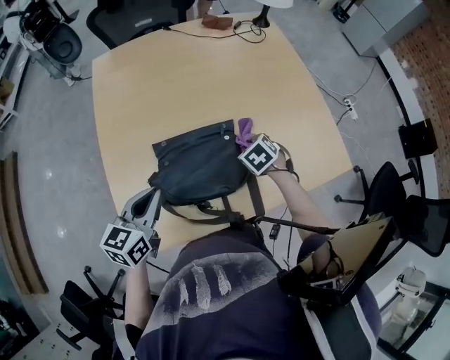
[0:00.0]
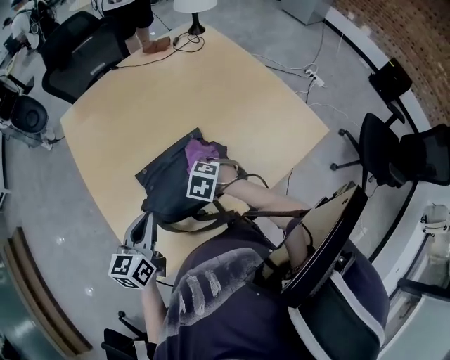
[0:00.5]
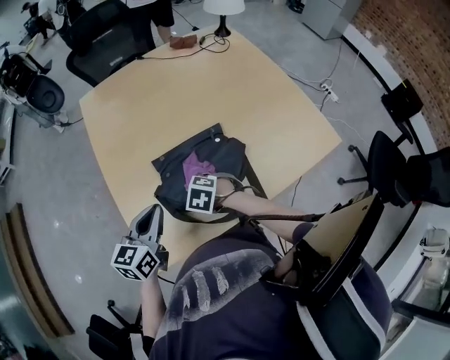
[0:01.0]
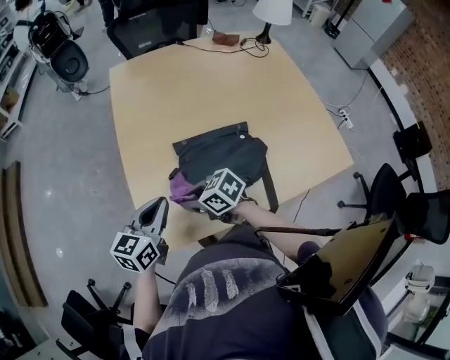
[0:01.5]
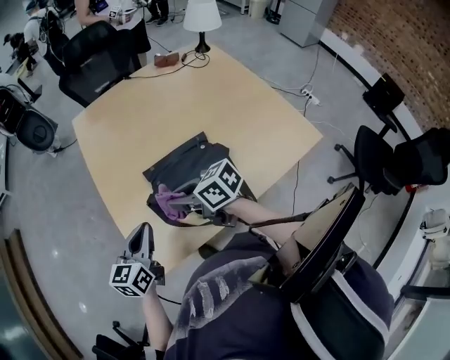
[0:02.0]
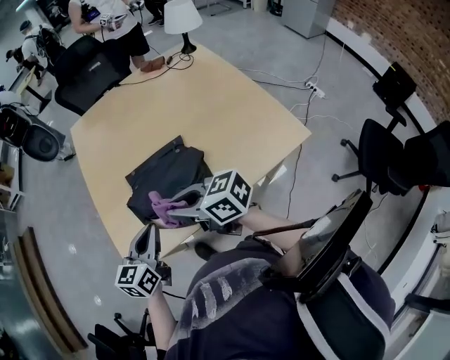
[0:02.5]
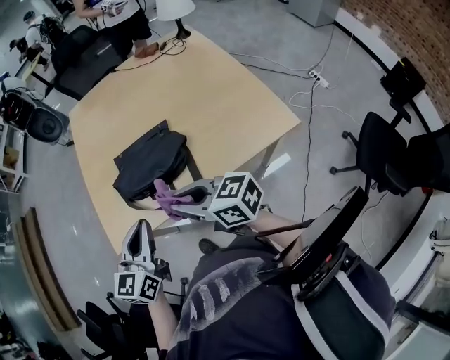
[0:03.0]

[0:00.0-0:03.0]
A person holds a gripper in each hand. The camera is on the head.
0:00.0 to 0:01.5: The right gripper moves roughly 35 cm, and tips its fingers upward by roughly 30 degrees, while the left gripper shifts by about 10 cm.
0:01.5 to 0:03.0: The left gripper is displaced backward, to the right and upward by approximately 25 cm; the right gripper heads to the right, backward and upward, covering roughly 35 cm, and rotates some 30 degrees.

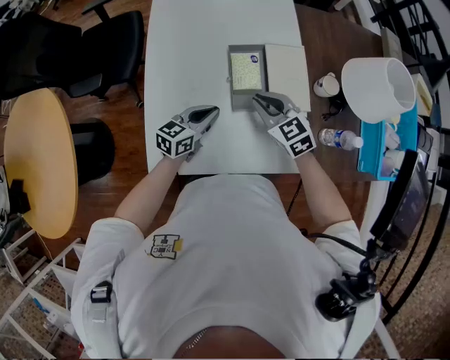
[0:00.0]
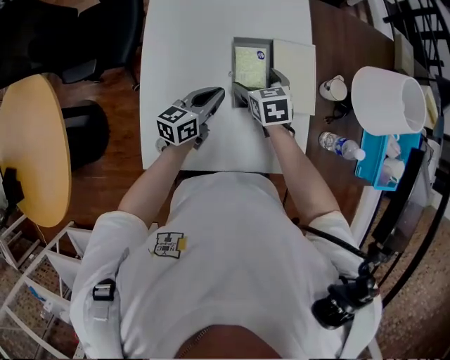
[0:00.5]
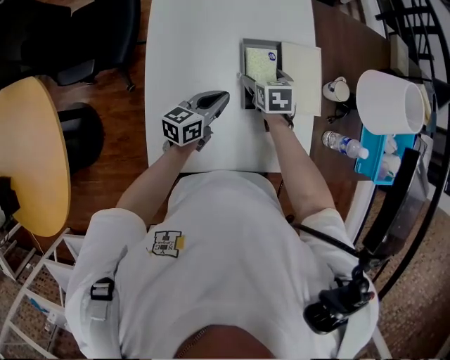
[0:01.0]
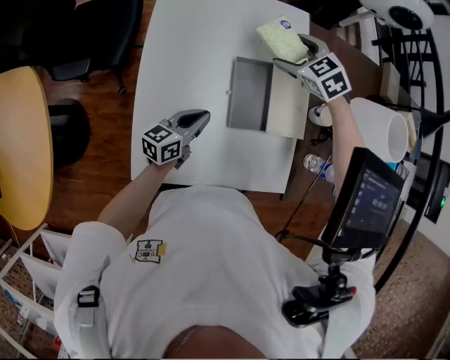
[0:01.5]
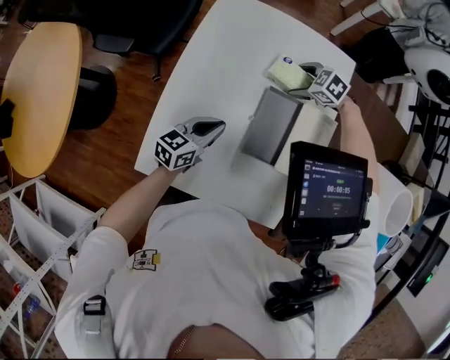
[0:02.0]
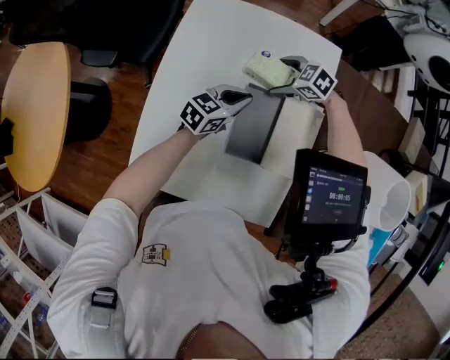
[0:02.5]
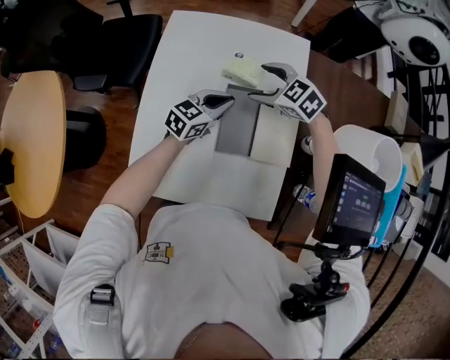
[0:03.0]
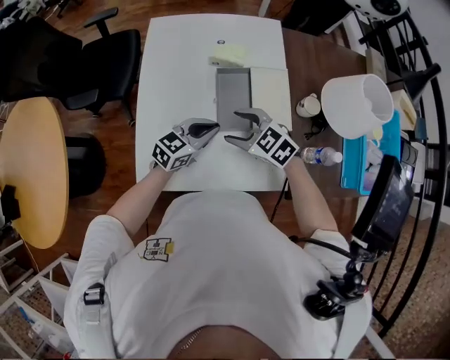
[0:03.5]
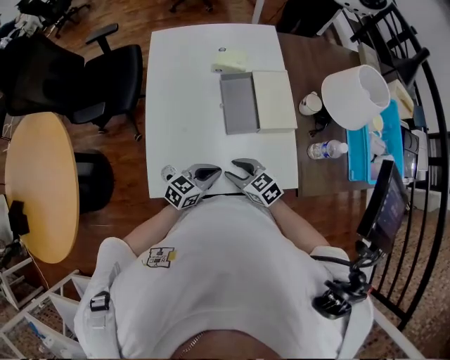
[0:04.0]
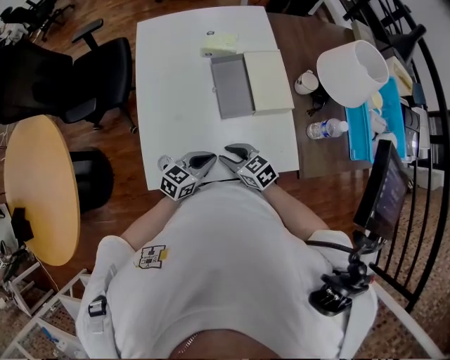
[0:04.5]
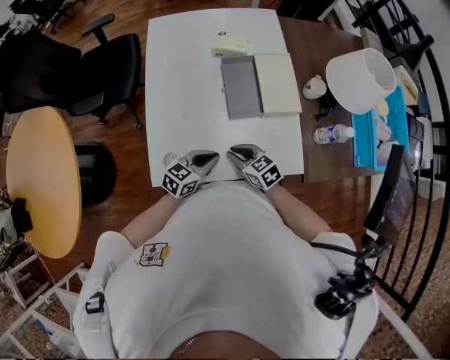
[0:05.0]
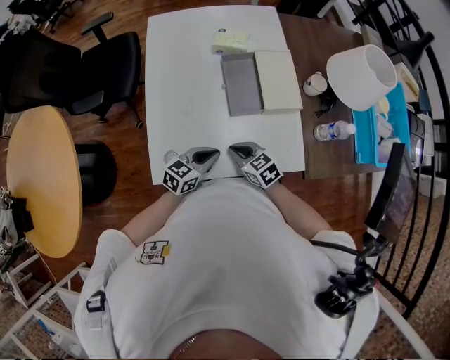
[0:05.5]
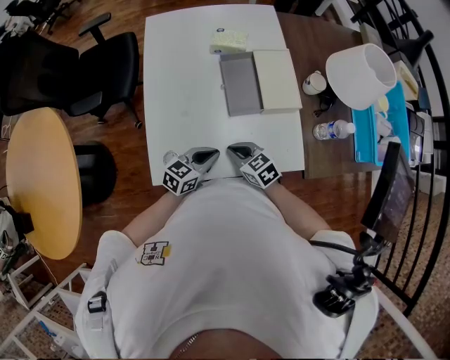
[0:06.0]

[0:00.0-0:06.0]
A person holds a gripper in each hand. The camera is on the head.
0:00.0 to 0:02.0: The left gripper shifts by roughly 10 cm, while the right gripper shifts by about 30 cm, tips its fingers downward by about 40 degrees, and opens.
0:02.0 to 0:04.0: The right gripper is displaced backward by some 35 cm, twists some 50 degrees clockwise, seen from behind, and closes. Meanwhile the left gripper shifts roughly 15 cm backward, and rotates some 30 degrees.
0:04.0 to 0:06.0: The grippers move only a little.

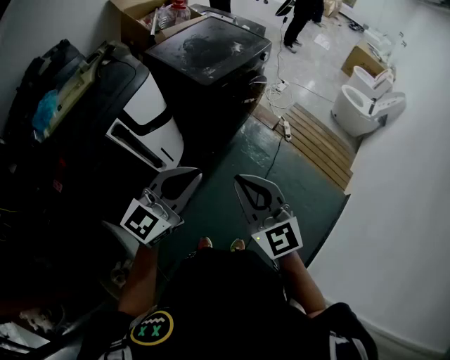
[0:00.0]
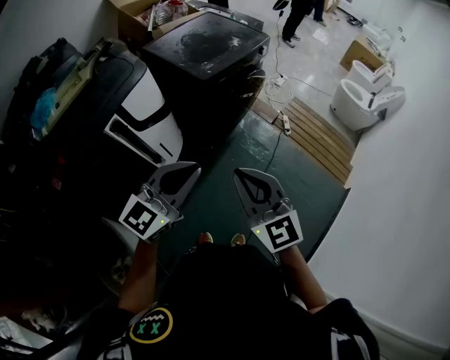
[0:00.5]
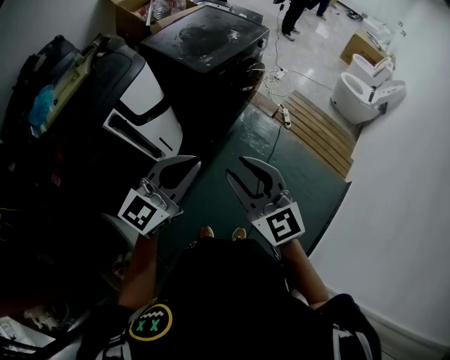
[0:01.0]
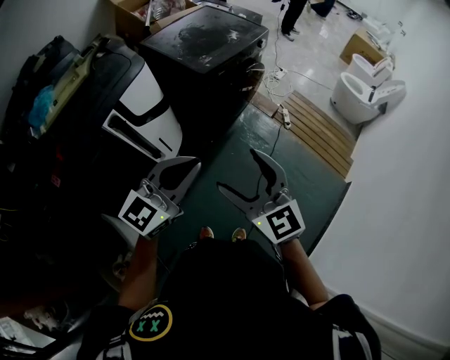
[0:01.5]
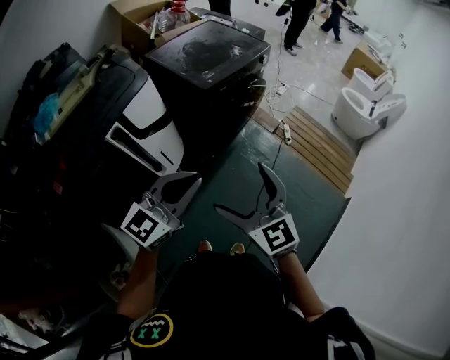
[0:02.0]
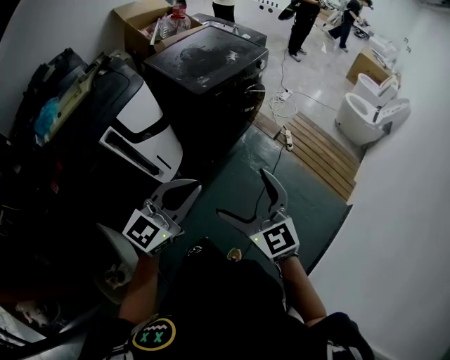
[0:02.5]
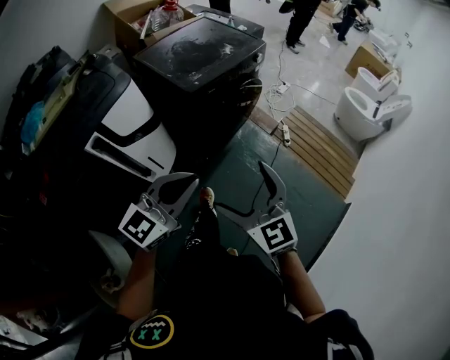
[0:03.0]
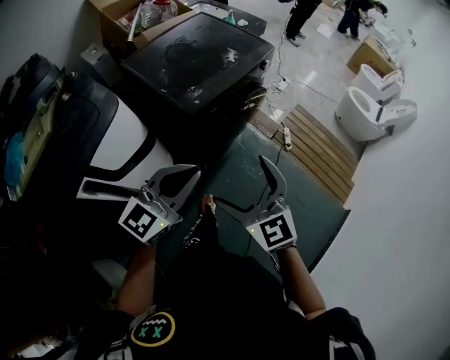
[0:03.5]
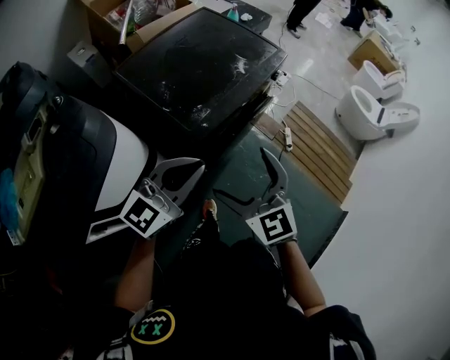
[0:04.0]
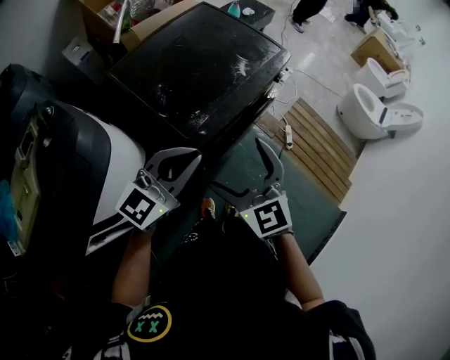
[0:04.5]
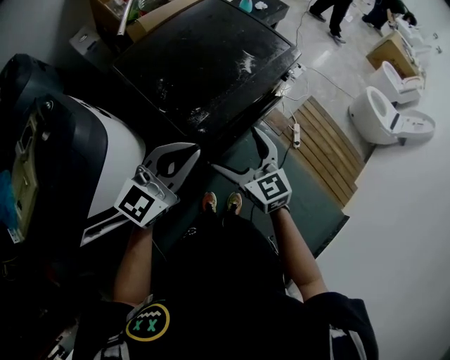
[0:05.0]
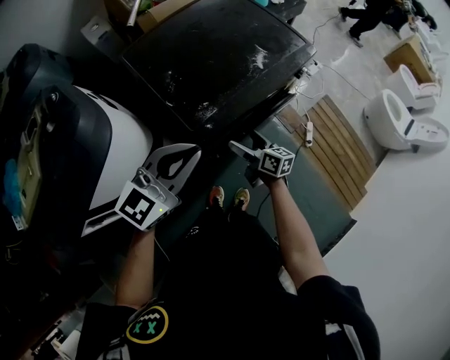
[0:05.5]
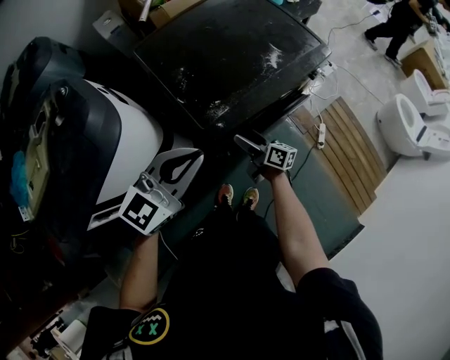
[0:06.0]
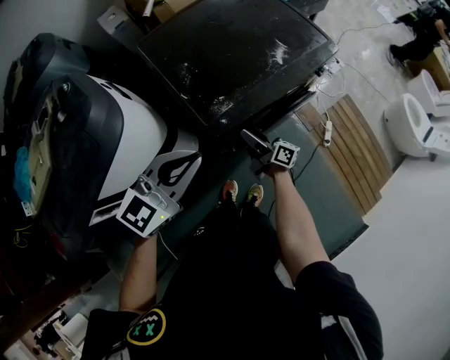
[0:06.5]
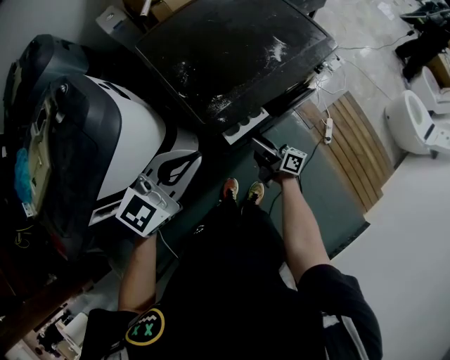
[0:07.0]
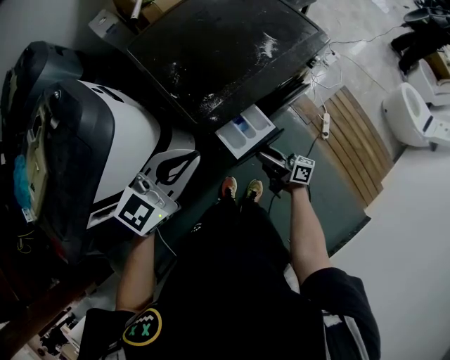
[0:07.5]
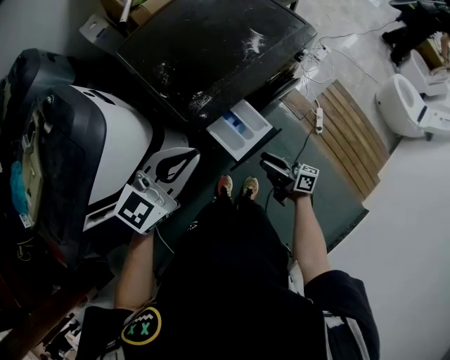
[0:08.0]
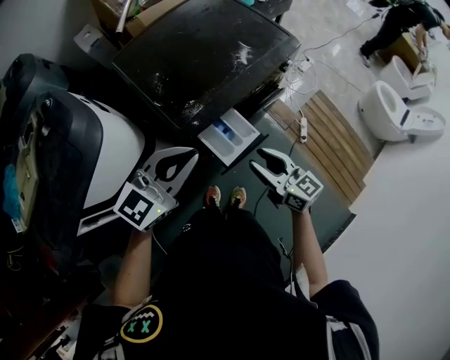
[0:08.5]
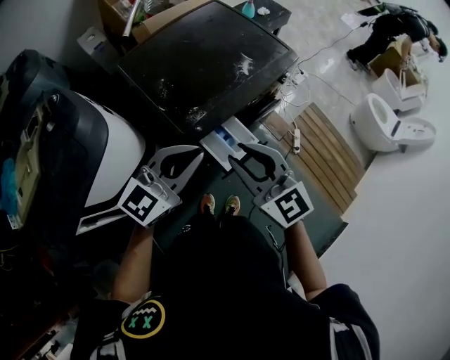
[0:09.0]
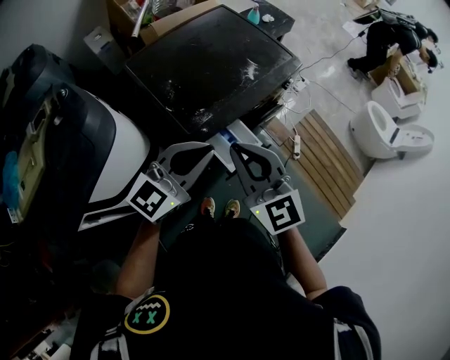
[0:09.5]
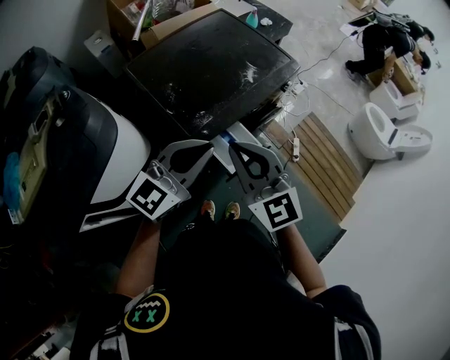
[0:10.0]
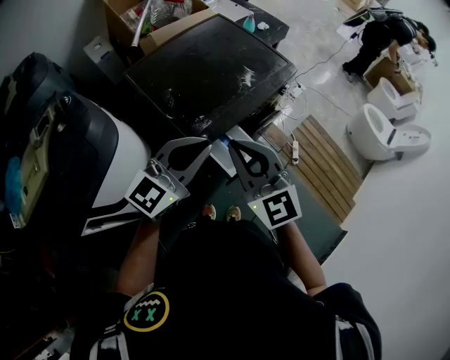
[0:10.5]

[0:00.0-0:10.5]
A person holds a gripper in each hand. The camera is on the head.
0:00.0 to 0:02.0: The right gripper opens its fingers.
0:02.0 to 0:04.0: The two grippers travel together, forward, approximately 40 cm.
0:04.0 to 0:06.5: The right gripper heads downward and forward, covering roughly 30 cm, and rotates around the line of its fingers by roughly 80 degrees, clockwise from behind. The left gripper shifts some 5 cm forward.
0:06.5 to 0:08.5: The left gripper changes place by some 5 cm; the right gripper heads upward, backward and to the right, covering approximately 20 cm, twists some 40 degrees counterclockwise, seen from behind, and closes.
0:08.5 to 0:10.5: The right gripper goes approximately 25 cm upward and to the left, and rotates roughly 40 degrees, while the left gripper heads upward, covering roughly 5 cm.

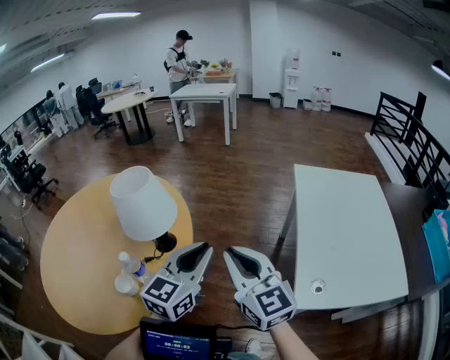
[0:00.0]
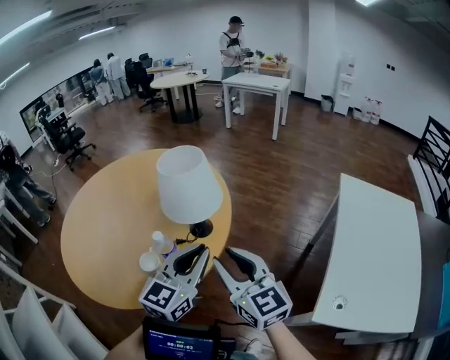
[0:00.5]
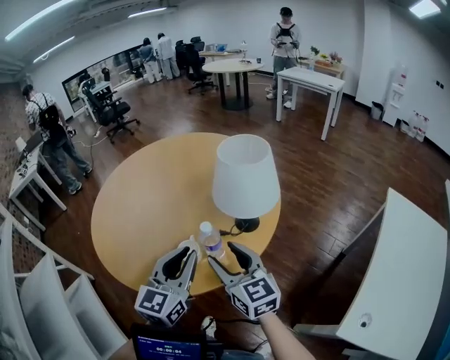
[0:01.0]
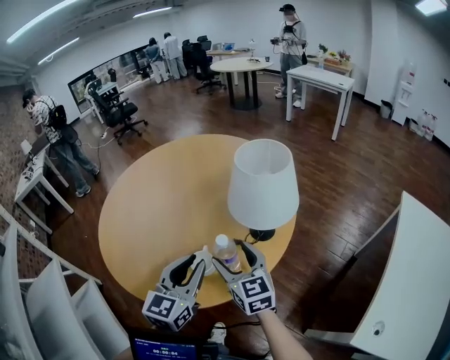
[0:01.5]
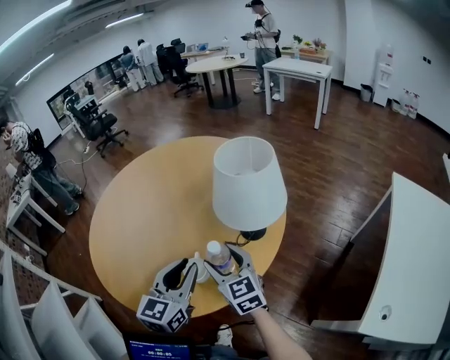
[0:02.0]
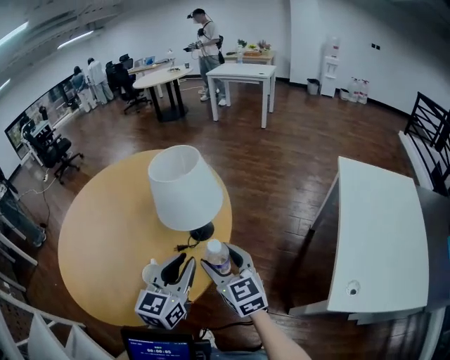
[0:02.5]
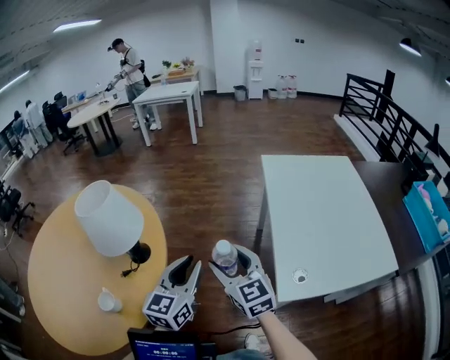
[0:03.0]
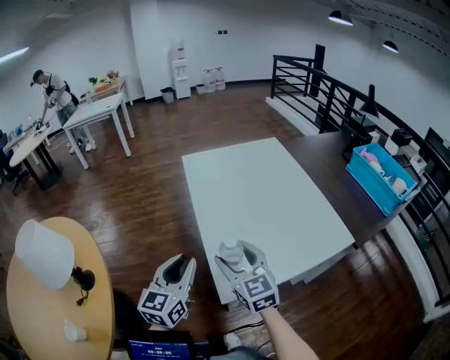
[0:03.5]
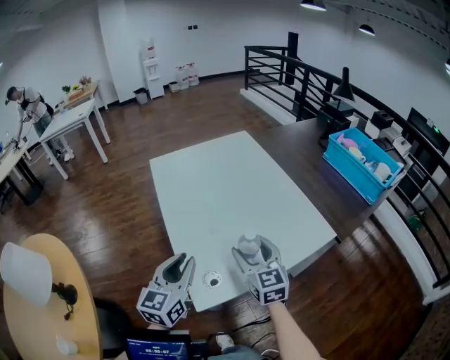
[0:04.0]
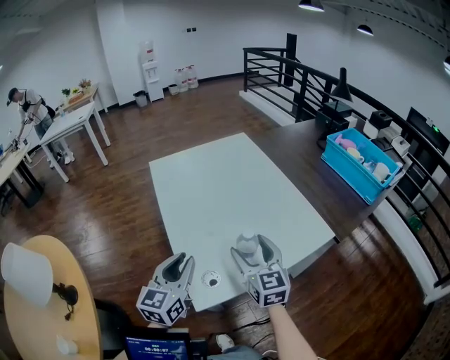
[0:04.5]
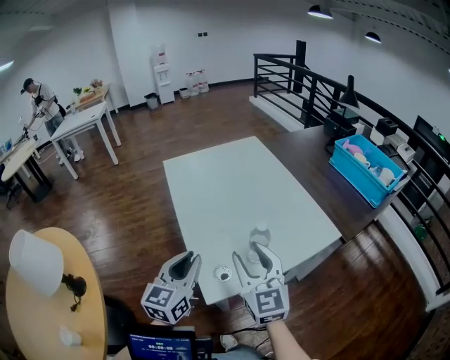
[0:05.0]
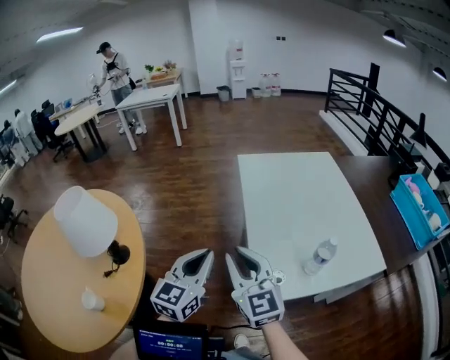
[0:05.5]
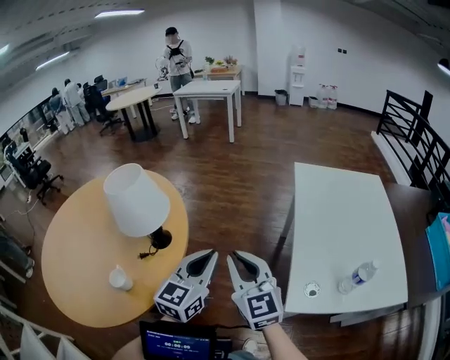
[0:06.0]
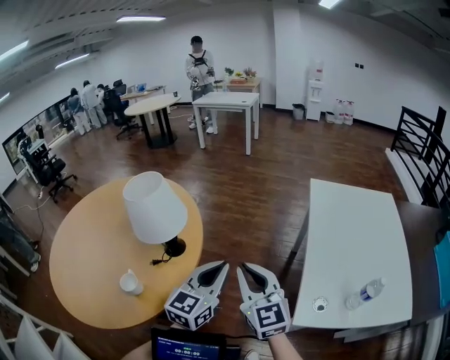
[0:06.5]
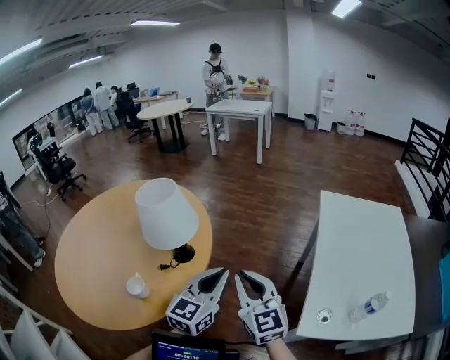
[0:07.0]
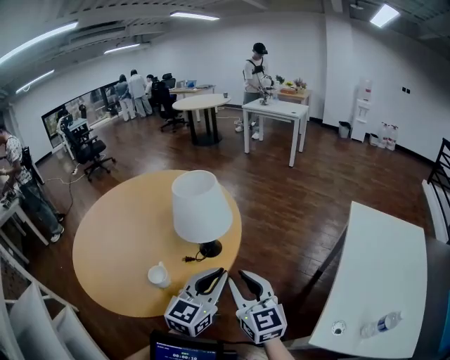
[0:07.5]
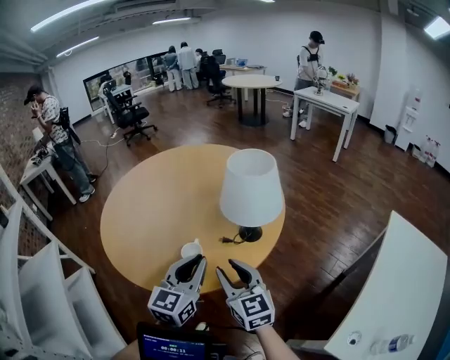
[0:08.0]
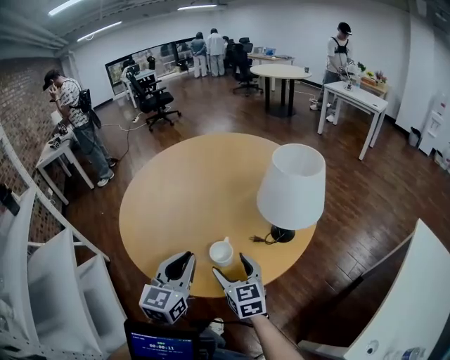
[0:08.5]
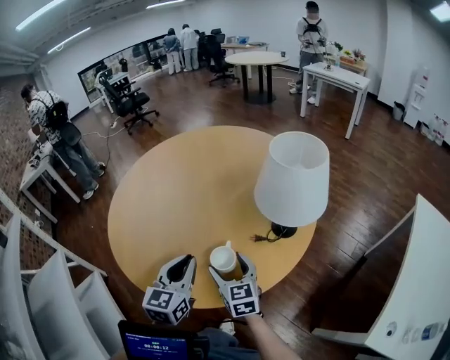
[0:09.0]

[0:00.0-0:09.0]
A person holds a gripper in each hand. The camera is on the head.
0:00.0 to 0:02.0: The left gripper shifts by roughly 35 cm, and changes its angle by approximately 30 degrees, while the right gripper moves roughly 35 cm, swivels some 30 degrees, and opens its fingers.
0:02.0 to 0:04.5: The pair of grippers is taken about 70 cm. The right gripper swivels some 80 degrees. The left gripper rotates roughly 60 degrees.
0:04.5 to 0:07.0: The right gripper ends up about 50 cm from where it was, changes its angle by some 50 degrees, and closes its fingers, while the left gripper changes place by some 35 cm, turns by some 30 degrees, and closes its fingers.
0:07.0 to 0:09.0: The left gripper shifts by roughly 40 cm, and swivels some 40 degrees; the right gripper shifts by some 40 cm, changes its angle by some 30 degrees, and opens its fingers.
